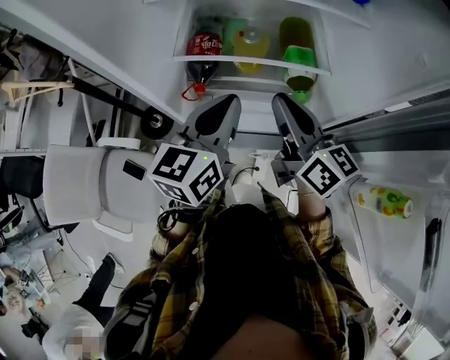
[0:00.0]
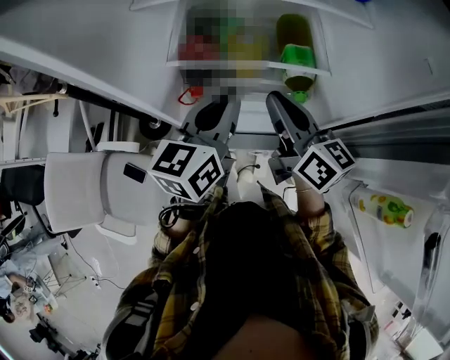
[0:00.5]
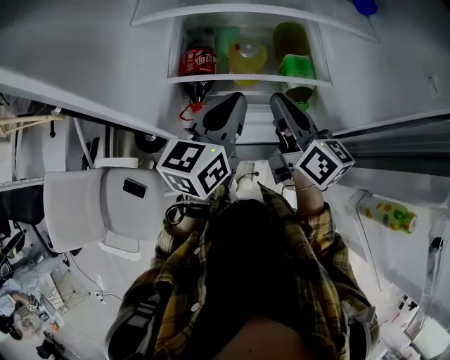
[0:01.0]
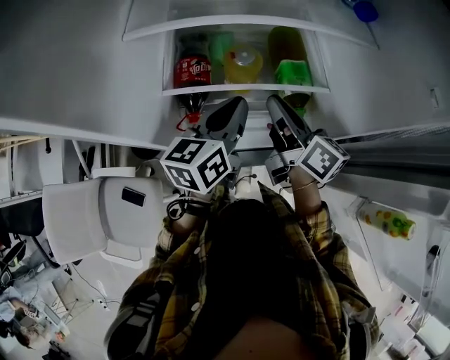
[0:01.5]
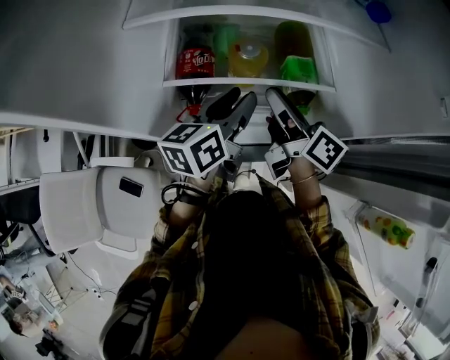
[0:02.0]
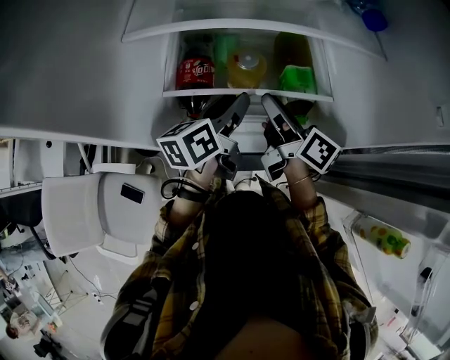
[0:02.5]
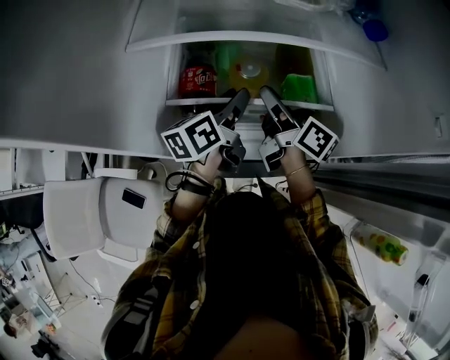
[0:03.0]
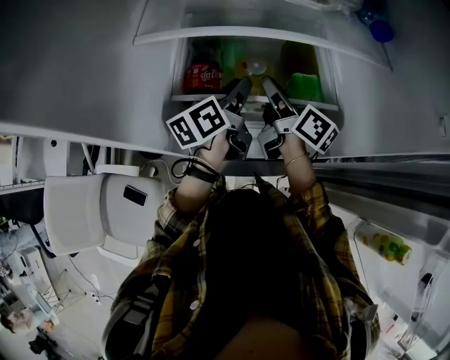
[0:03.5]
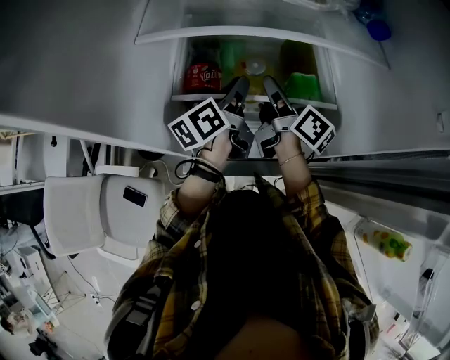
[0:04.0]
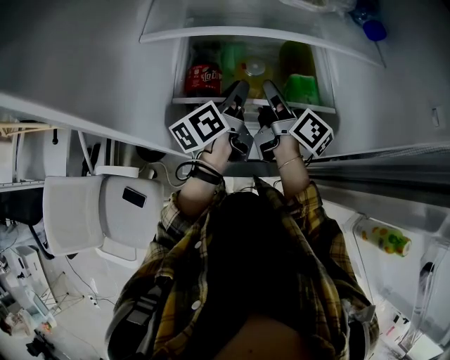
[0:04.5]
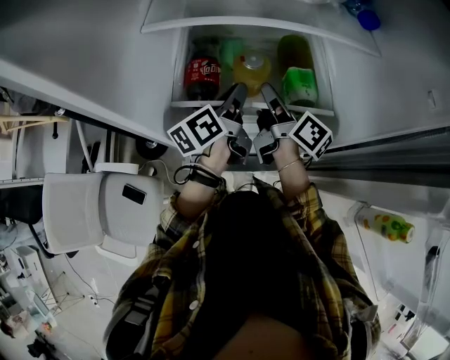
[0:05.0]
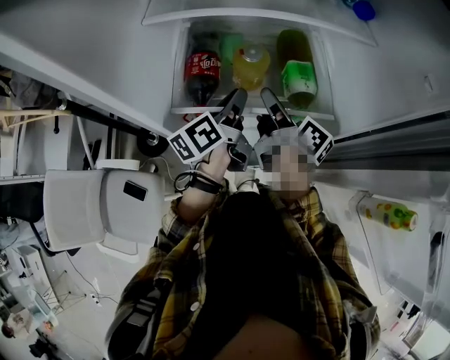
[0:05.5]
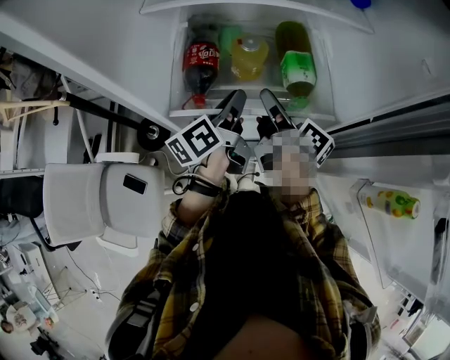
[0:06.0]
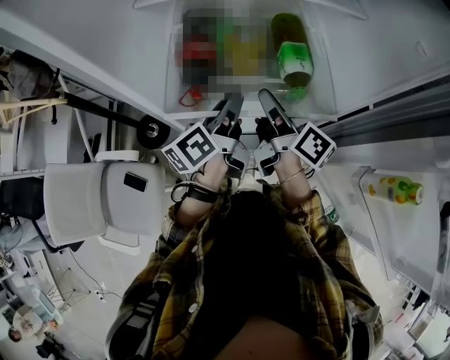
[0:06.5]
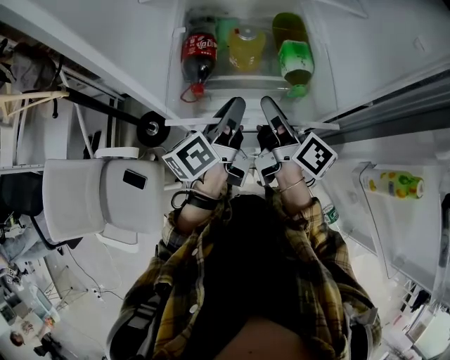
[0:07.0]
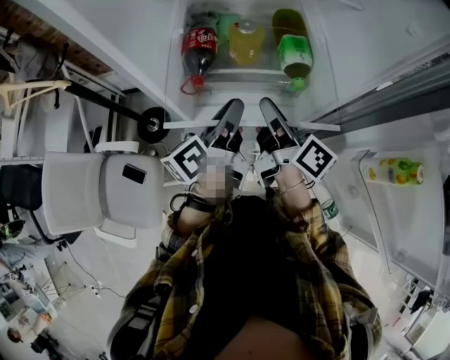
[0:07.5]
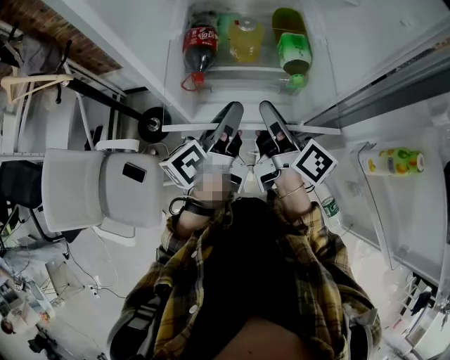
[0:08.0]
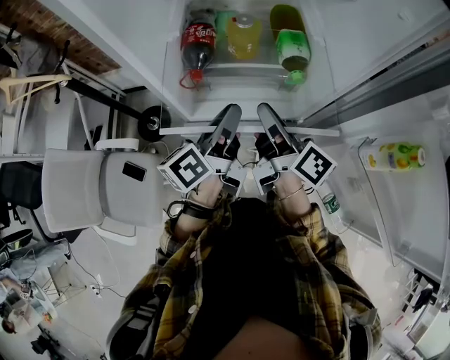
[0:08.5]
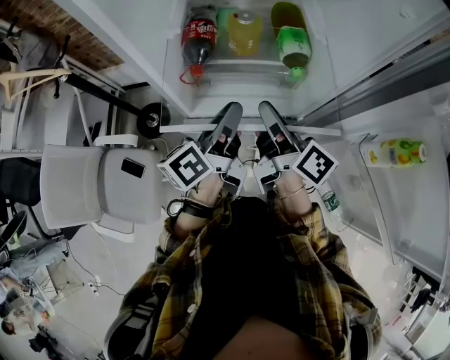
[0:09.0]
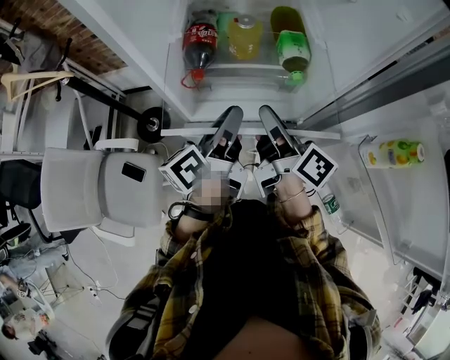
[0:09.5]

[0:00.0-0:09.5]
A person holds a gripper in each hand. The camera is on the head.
0:00.0 to 0:02.0: Both grippers move forward and downward, about 10 cm. The right gripper turns by some 30 degrees, and opens up; the left gripper swivels approximately 20 degrees, and opens.
0:02.0 to 0:04.0: The grippers both shift forward by some 10 cm. The left gripper swivels about 20 degrees.
0:04.0 to 0:05.5: Both grippers travel together backward, approximately 10 cm.
0:05.5 to 0:07.5: Both grippers travel together backward, about 10 cm.
0:07.5 to 0:09.5: There are only small adjustments of the grippers.

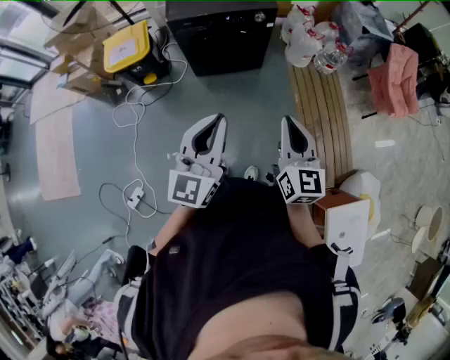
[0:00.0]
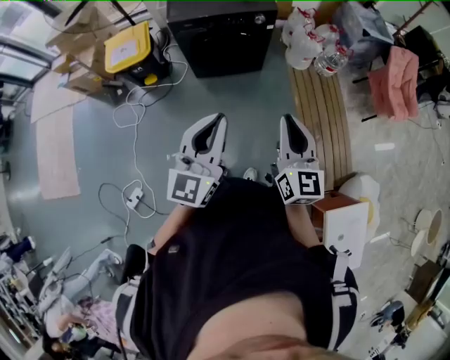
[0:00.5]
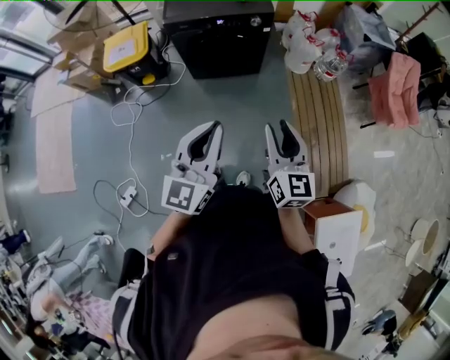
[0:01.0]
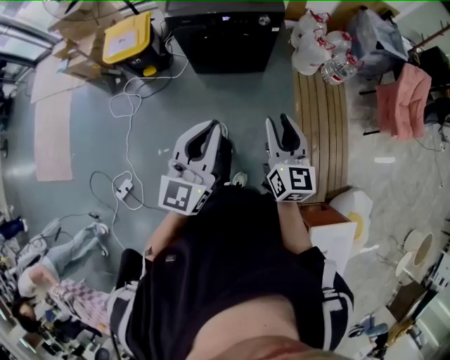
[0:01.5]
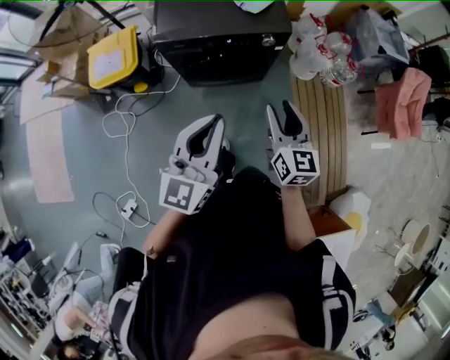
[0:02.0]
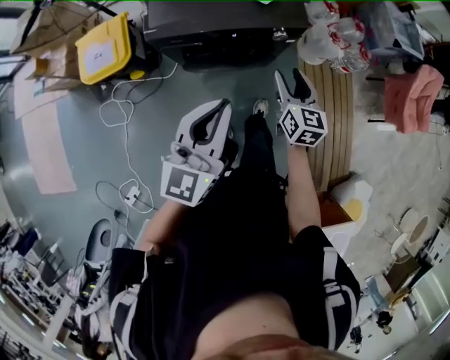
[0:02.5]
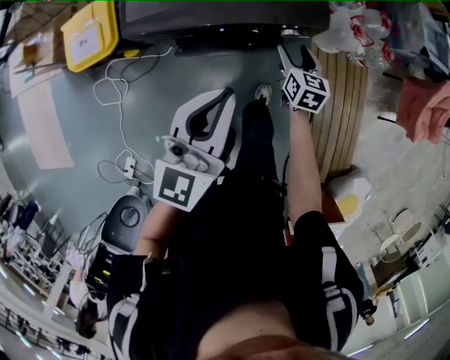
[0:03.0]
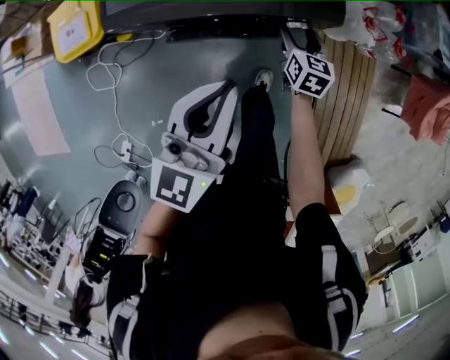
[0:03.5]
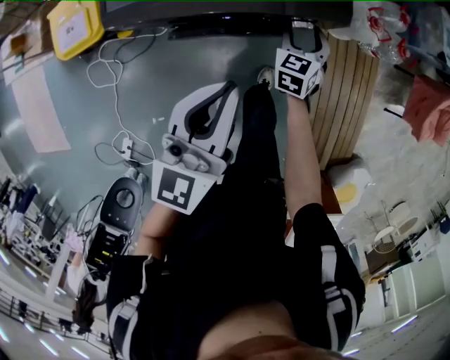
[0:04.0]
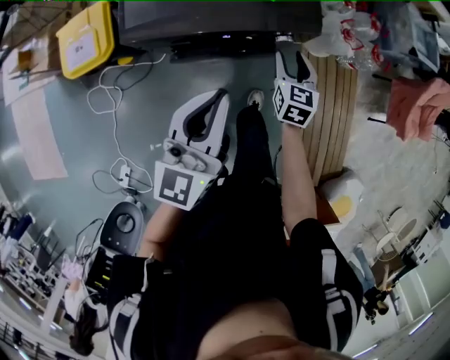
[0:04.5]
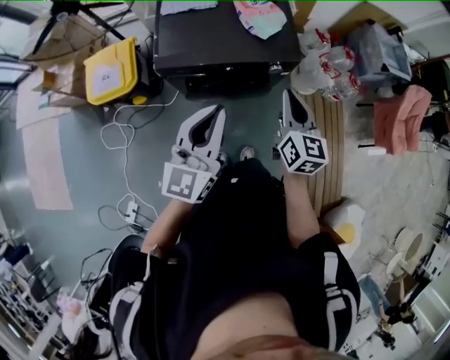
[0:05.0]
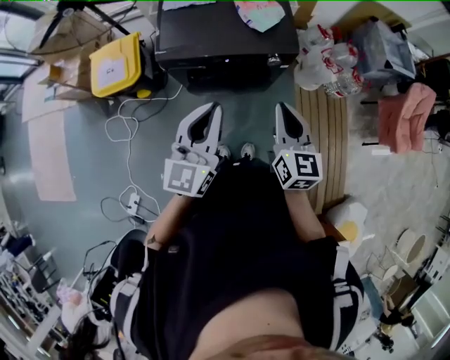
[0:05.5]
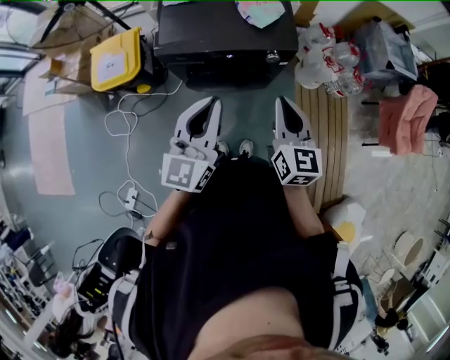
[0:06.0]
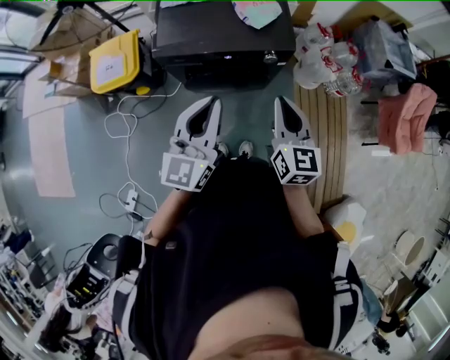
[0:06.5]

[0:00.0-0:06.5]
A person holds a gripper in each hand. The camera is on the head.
0:00.0 to 0:02.0: The grippers both shift forward by approximately 40 cm. The right gripper opens.
0:02.0 to 0:04.5: The grippers both shift forward and downward by roughly 40 cm. The right gripper turns by about 20 degrees.
0:04.5 to 0:06.5: The right gripper travels upward and backward by roughly 40 cm, turns by some 20 degrees, and closes up, while the left gripper moves upward and backward, some 20 cm.

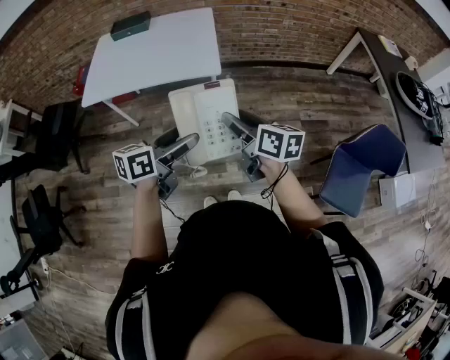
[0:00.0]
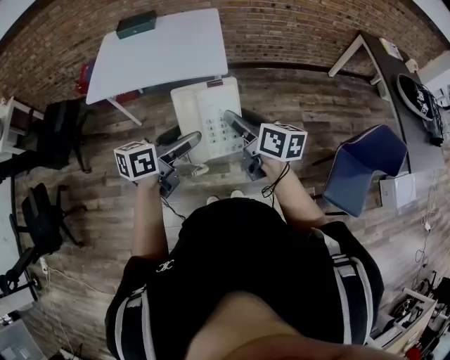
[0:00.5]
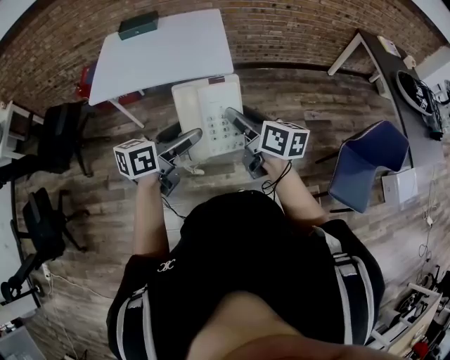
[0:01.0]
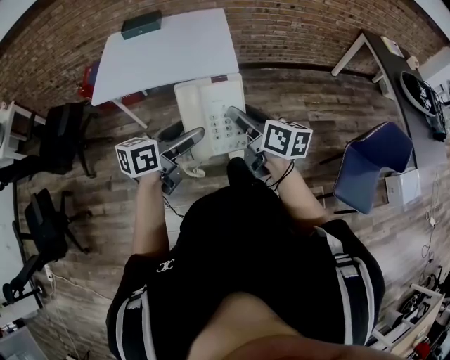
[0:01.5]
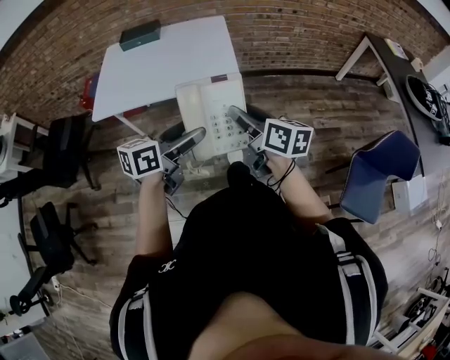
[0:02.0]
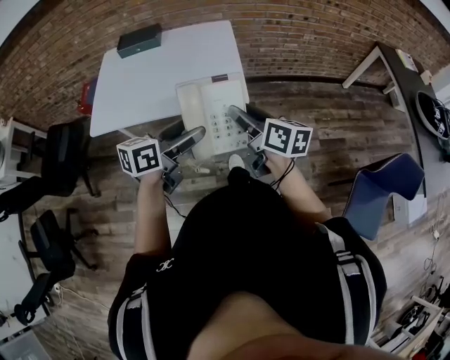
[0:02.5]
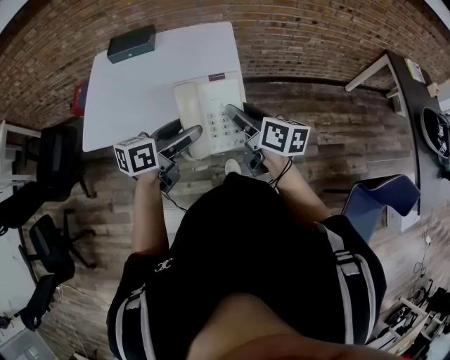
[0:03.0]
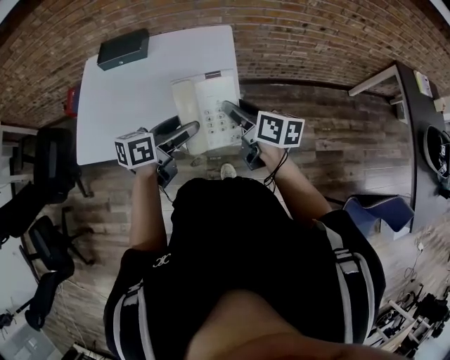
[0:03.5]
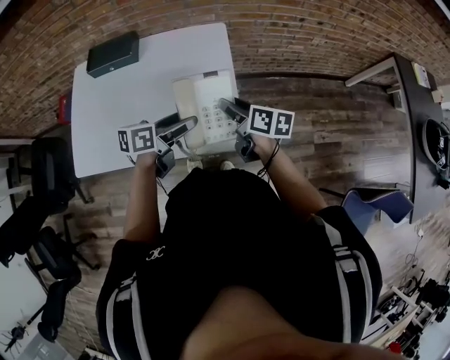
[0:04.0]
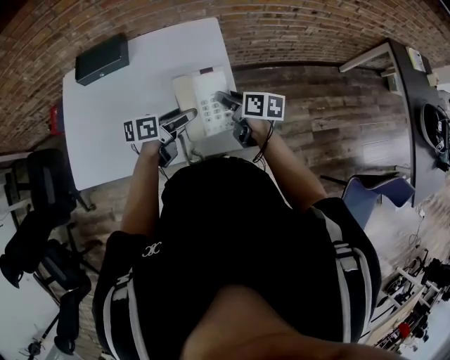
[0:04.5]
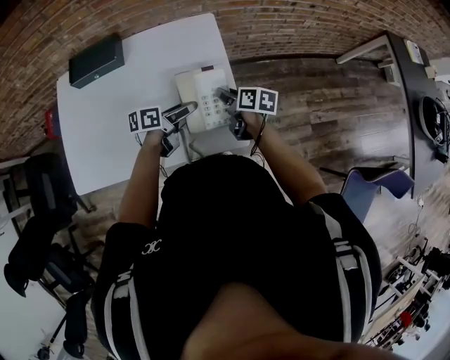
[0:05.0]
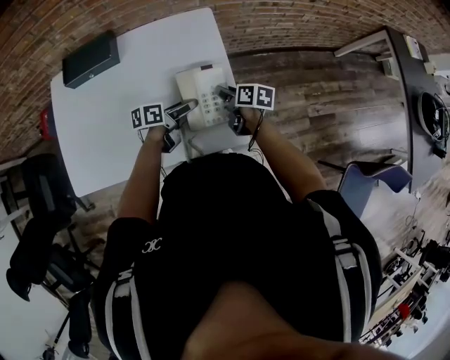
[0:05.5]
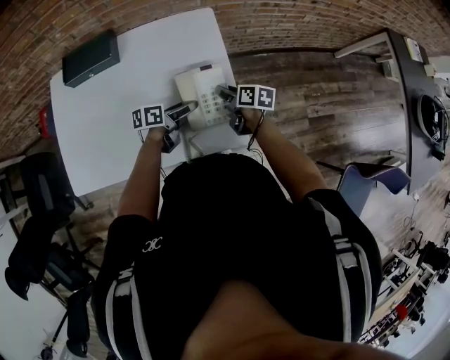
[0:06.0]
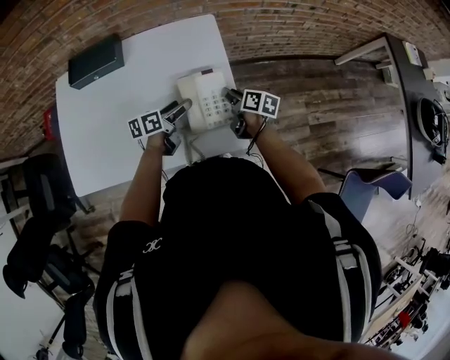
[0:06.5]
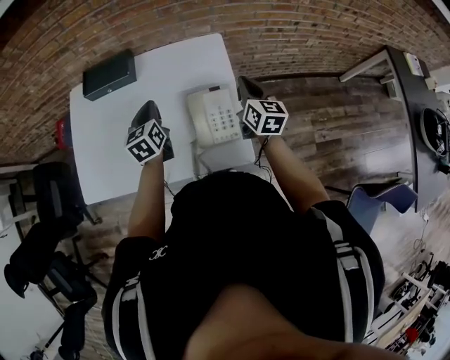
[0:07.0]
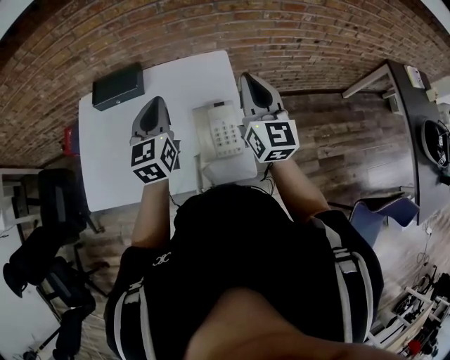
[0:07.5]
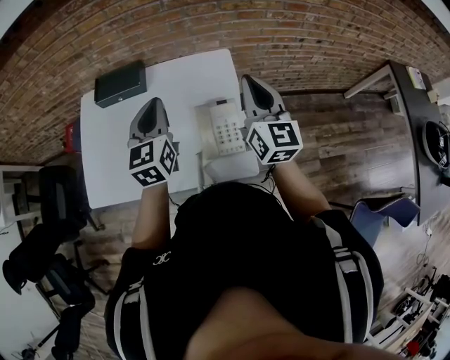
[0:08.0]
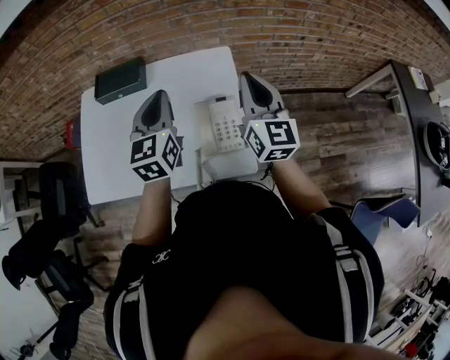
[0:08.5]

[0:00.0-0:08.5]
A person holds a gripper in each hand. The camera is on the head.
0:00.0 to 0:02.0: The two grippers go some 10 cm to the left and forward.
0:02.0 to 0:04.0: The two grippers travel together, forward, some 40 cm.
0:04.0 to 0:06.5: The two grippers go approximately 15 cm downward and forward.
0:06.5 to 0:08.5: Both grippers move upward, some 30 cm. The right gripper tilts its fingers approximately 40 degrees upward, and closes, while the left gripper changes its angle by roughly 60 degrees, and closes up.

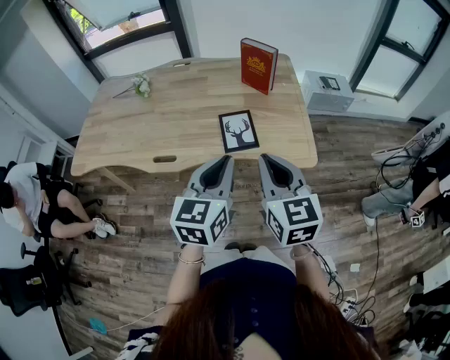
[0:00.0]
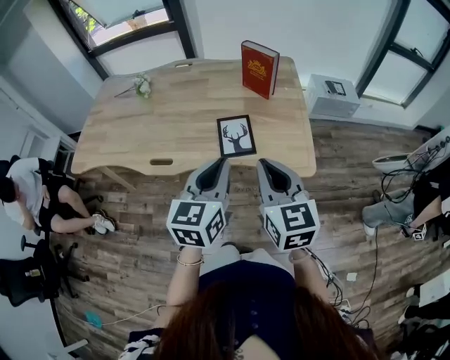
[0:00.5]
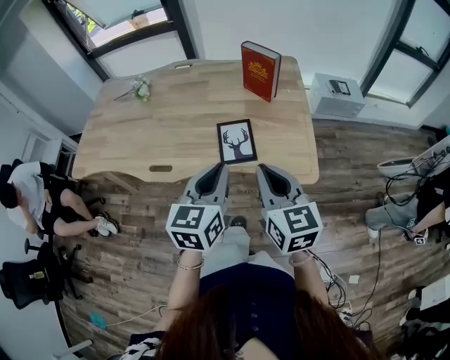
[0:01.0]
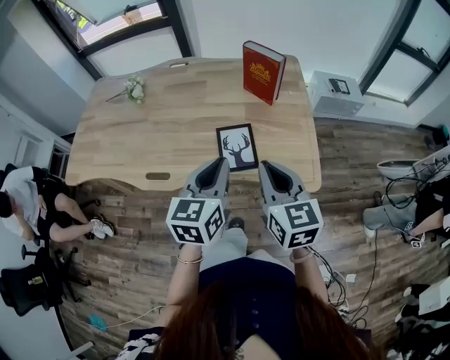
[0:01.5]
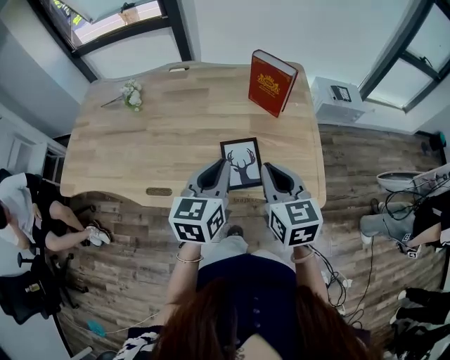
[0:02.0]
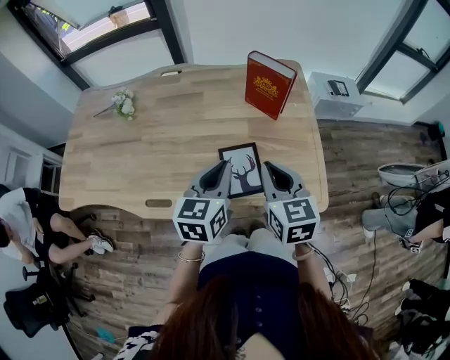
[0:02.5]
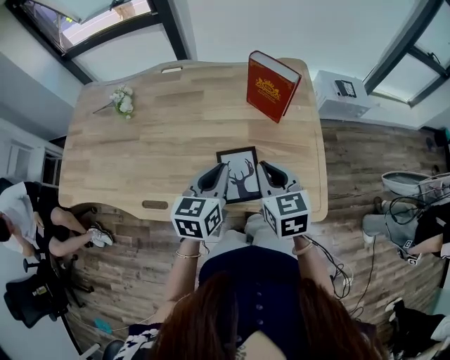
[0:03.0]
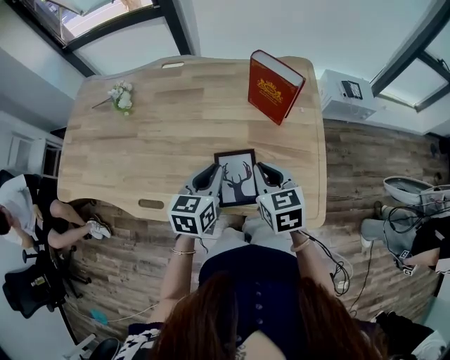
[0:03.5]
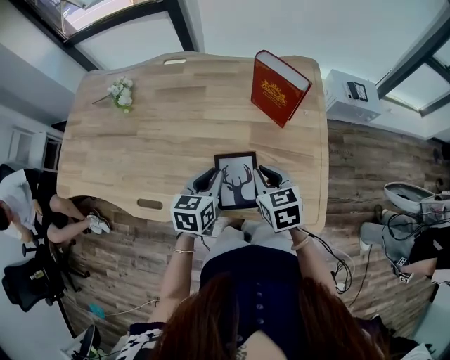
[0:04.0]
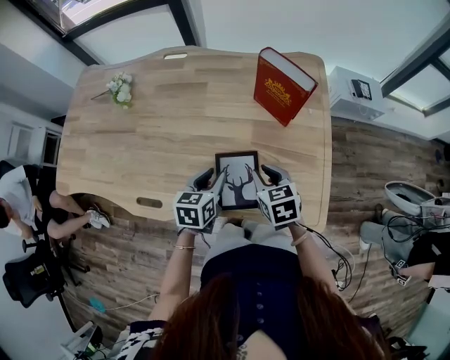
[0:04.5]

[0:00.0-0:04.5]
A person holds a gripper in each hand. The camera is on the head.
0:00.0 to 0:02.0: The two grippers go approximately 20 cm forward.
0:02.0 to 0:04.5: The grippers both shift downward and forward by approximately 20 cm. The left gripper rotates roughly 20 degrees, and opens up, while the right gripper rotates some 30 degrees.
